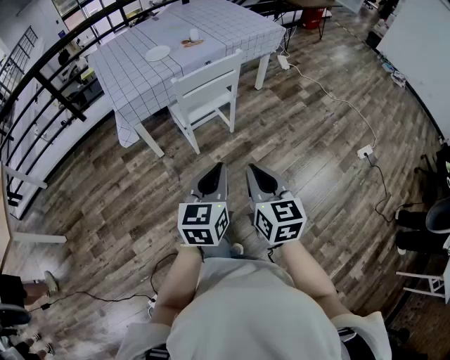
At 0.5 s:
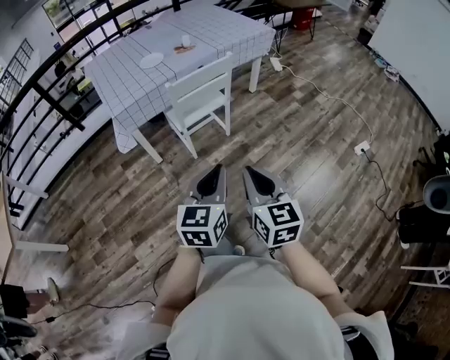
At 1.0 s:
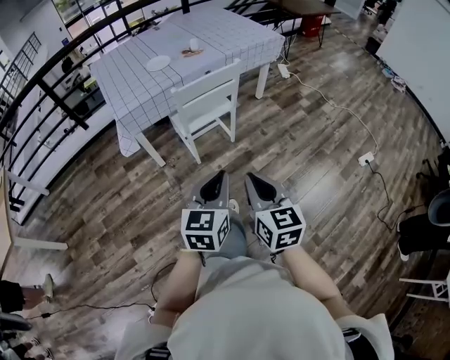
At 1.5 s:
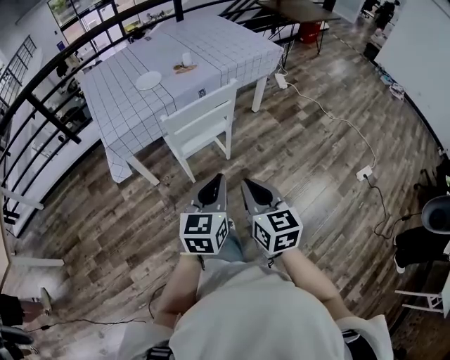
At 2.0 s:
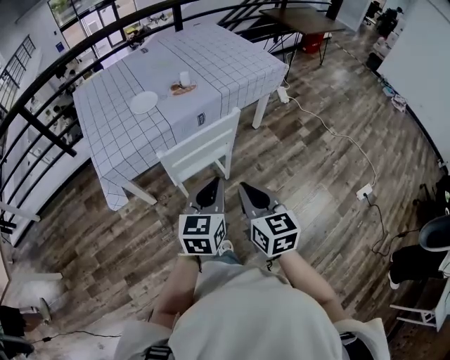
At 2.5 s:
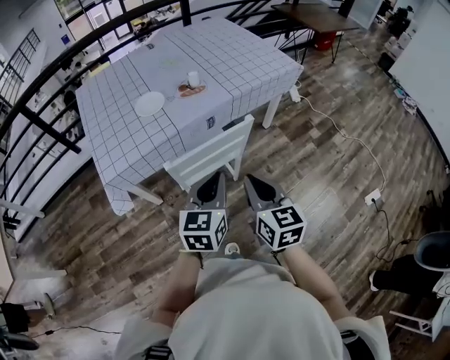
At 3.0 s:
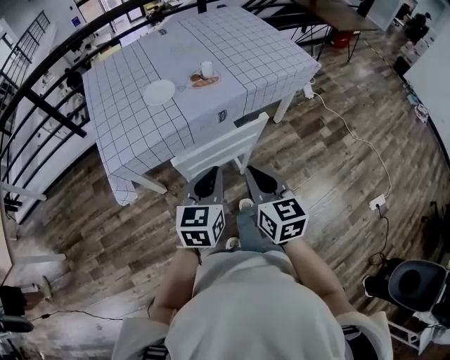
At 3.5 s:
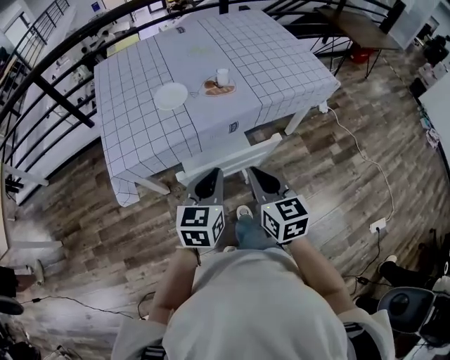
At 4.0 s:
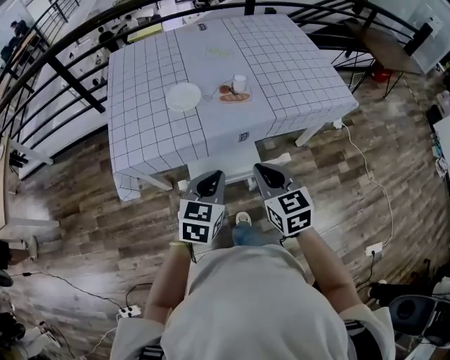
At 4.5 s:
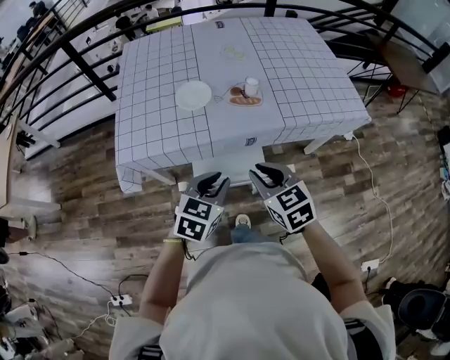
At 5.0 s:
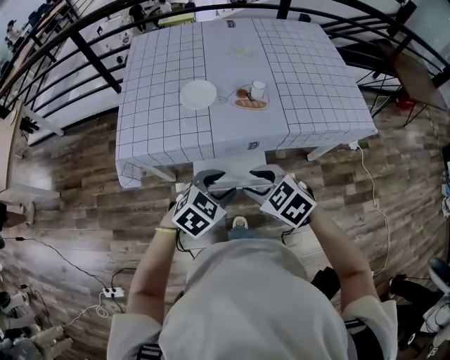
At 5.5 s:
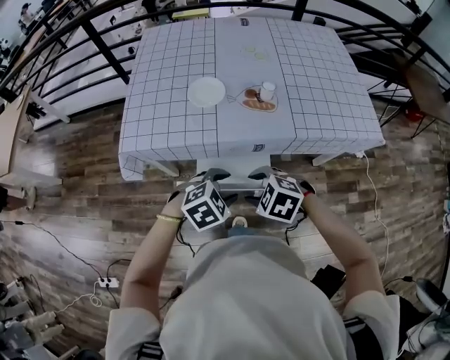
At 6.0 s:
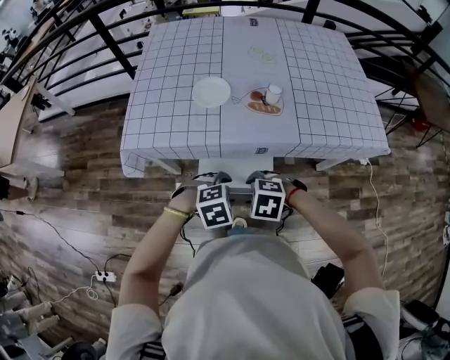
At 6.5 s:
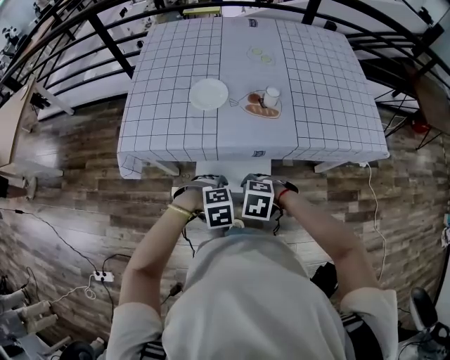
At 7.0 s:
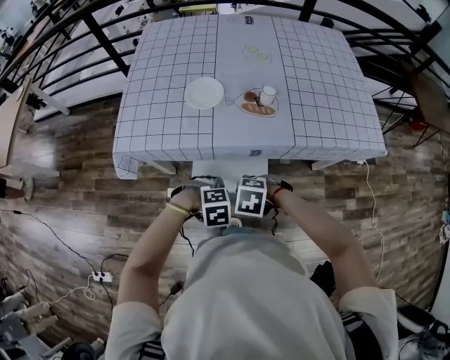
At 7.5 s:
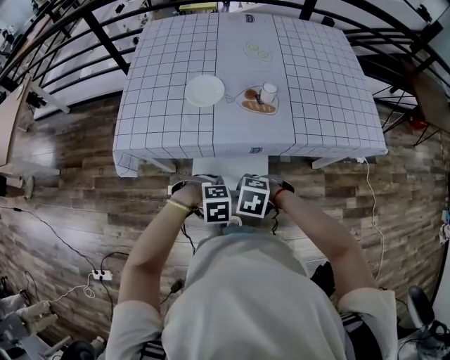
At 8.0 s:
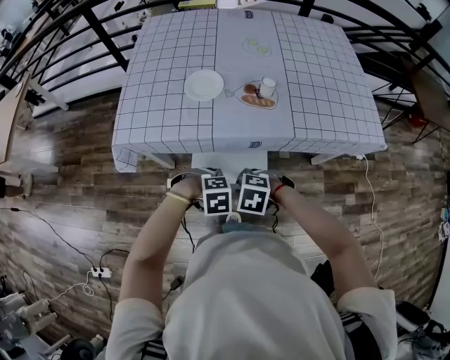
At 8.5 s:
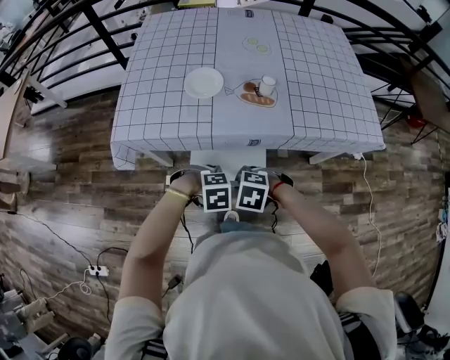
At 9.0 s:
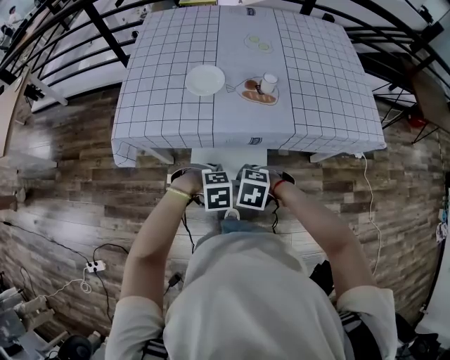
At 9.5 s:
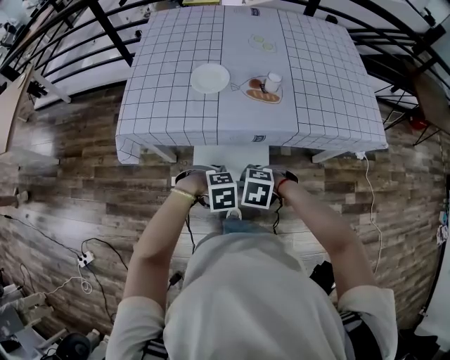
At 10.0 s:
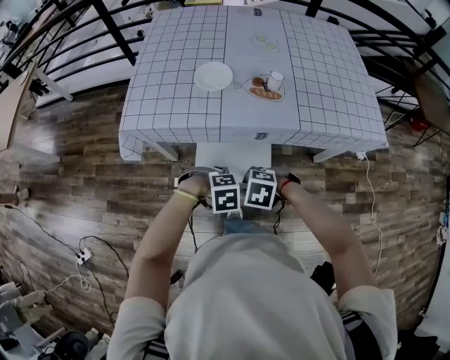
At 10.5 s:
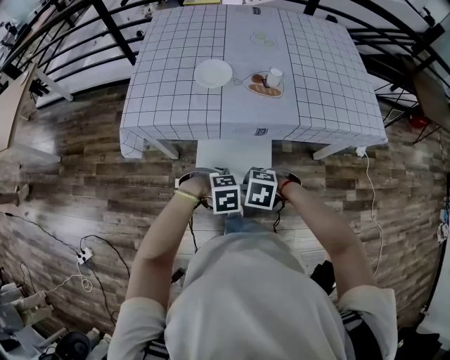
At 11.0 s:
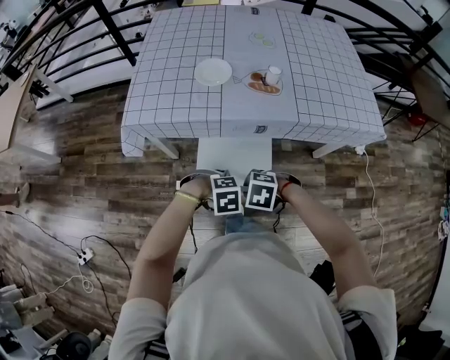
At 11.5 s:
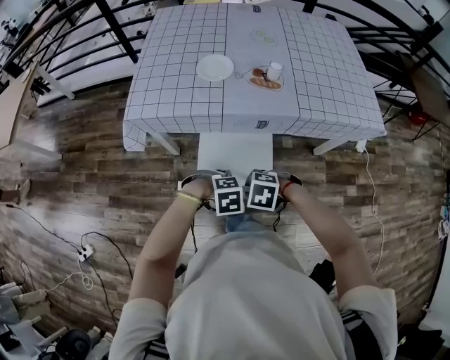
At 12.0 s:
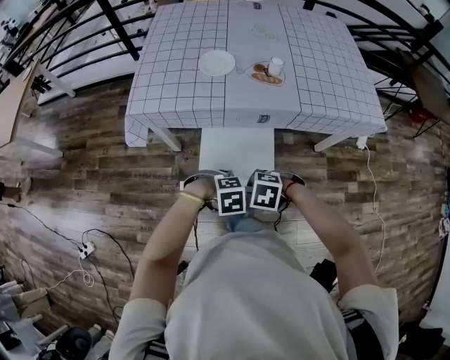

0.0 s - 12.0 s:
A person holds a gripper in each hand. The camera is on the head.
0.0 s - 2.0 s: Both grippers move forward, roughly 30 cm.
2.0 s - 4.0 s: The two grippers go roughly 25 cm forward. The right gripper changes its angle by some 30 degrees.
4.0 s - 6.0 s: Both grippers travel together downward, some 15 cm. The right gripper points its fingers roughly 50 degrees further downward, and opens up; the left gripper angles its fingers downward, by approximately 40 degrees, and opens up.
6.0 s - 8.0 s: The right gripper closes its fingers, while the left gripper shifts some 5 cm downward, and closes up.
8.0 s - 10.0 s: The grippers stay close to where they were, moving slightly.
10.0 s - 12.0 s: The right gripper shifts by some 10 cm. Meanwhile the left gripper shifts by roughly 10 cm.

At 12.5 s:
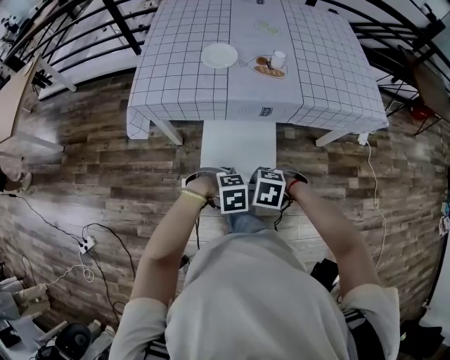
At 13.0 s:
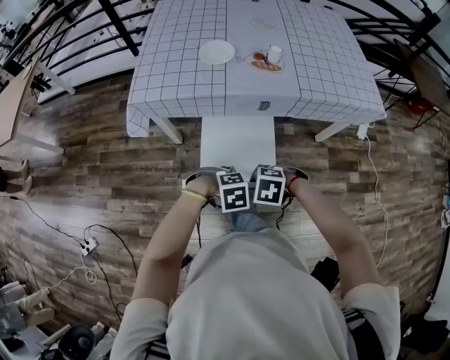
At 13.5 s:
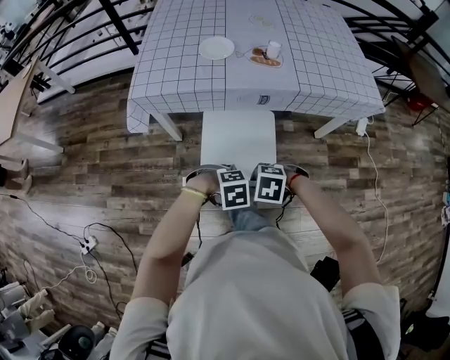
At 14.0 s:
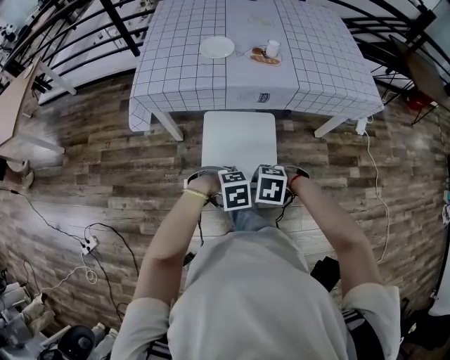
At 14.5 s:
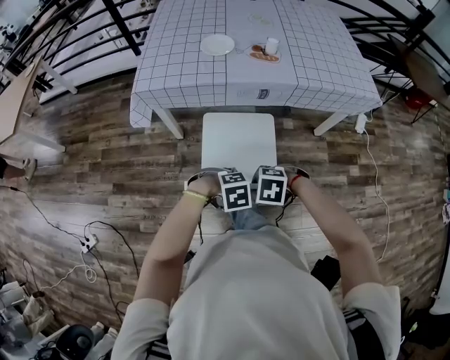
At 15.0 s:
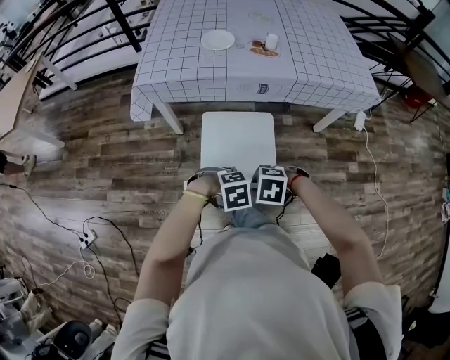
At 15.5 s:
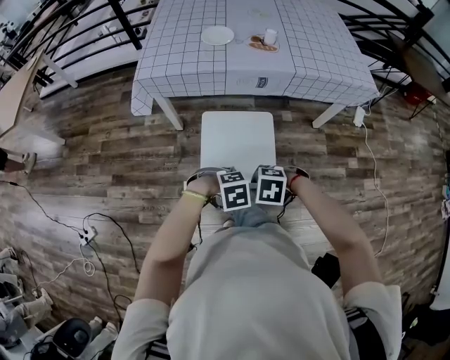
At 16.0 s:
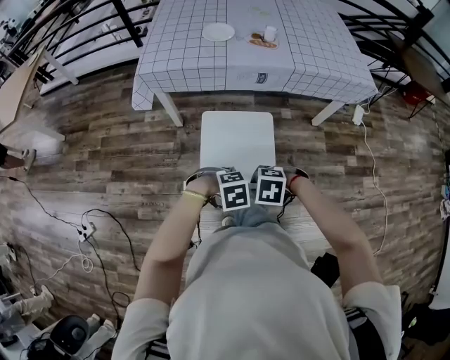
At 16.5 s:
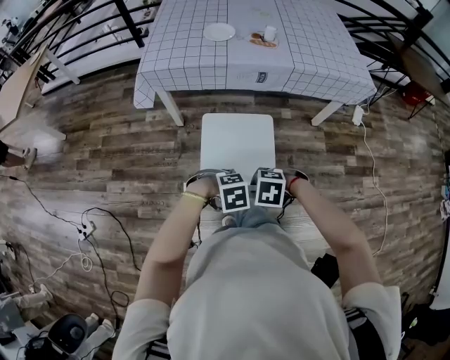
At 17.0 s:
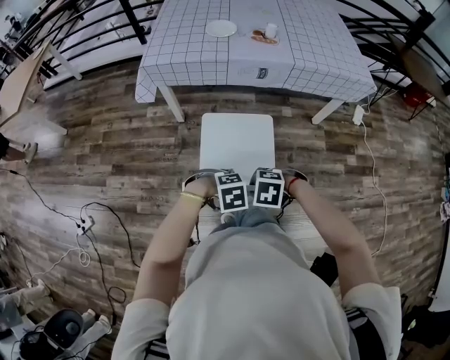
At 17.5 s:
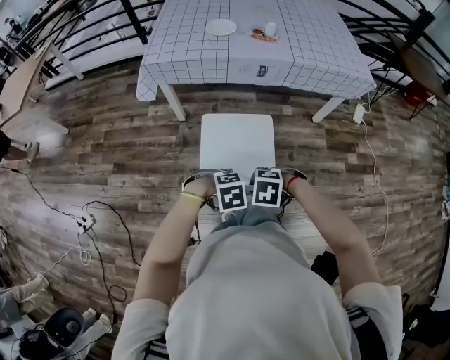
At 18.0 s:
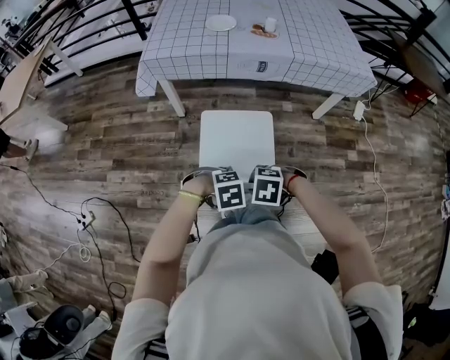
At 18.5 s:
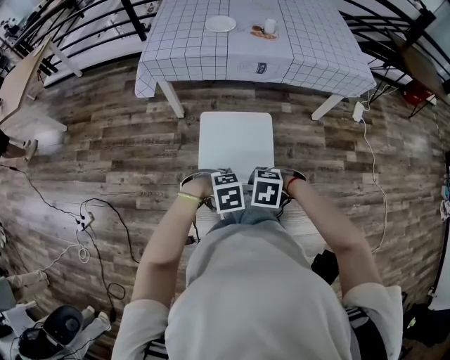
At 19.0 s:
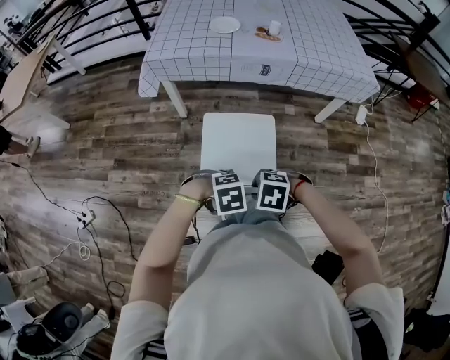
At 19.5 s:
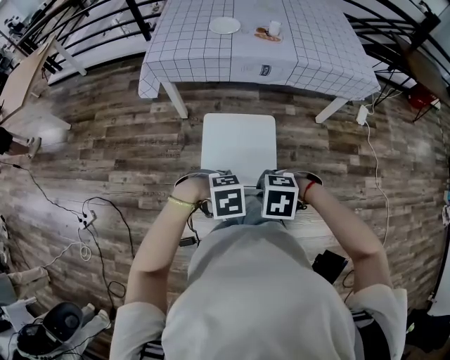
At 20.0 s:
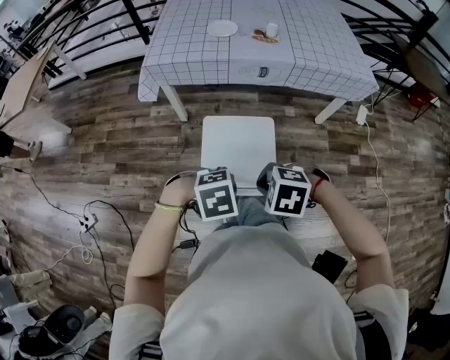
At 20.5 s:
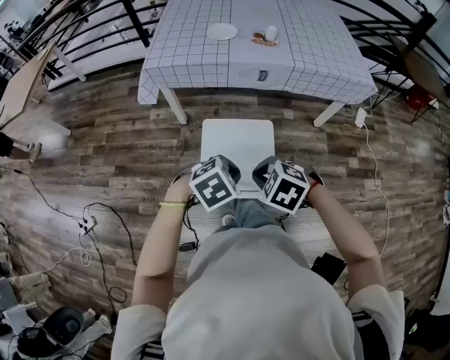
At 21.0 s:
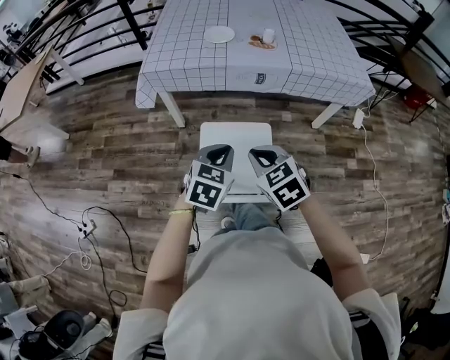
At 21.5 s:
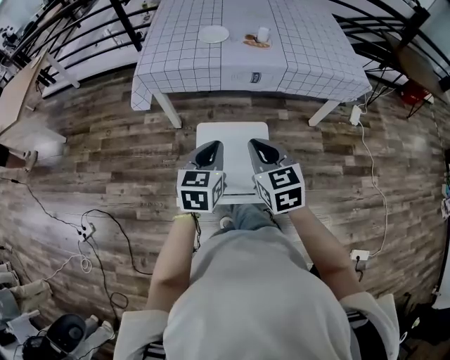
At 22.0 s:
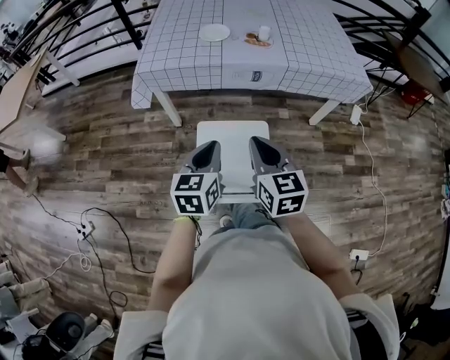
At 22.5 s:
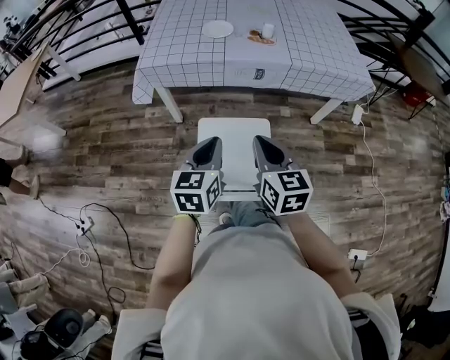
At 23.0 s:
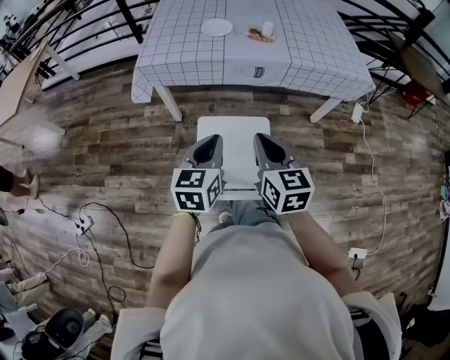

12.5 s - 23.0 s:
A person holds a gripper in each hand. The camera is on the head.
12.5 s - 14.5 s: The right gripper shifts by some 10 cm, while the left gripper ends up approximately 10 cm from where it was.
14.5 s - 16.5 s: The right gripper moves approximately 10 cm. Meanwhile the left gripper moves some 10 cm.
16.5 s - 19.0 s: The left gripper moves about 5 cm, while the right gripper changes place by approximately 5 cm.
19.0 s - 21.0 s: The left gripper ends up roughly 20 cm from where it was, tips its fingers upward by about 40 degrees, and closes its fingers, while the right gripper changes place by roughly 20 cm, points its fingers about 30 degrees further upward, and closes up.
21.0 s - 23.0 s: The right gripper moves approximately 5 cm, and rotates approximately 40 degrees, while the left gripper turns by some 20 degrees.

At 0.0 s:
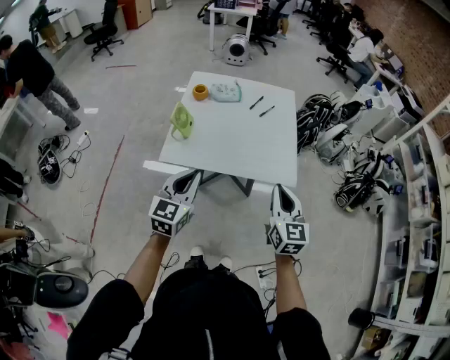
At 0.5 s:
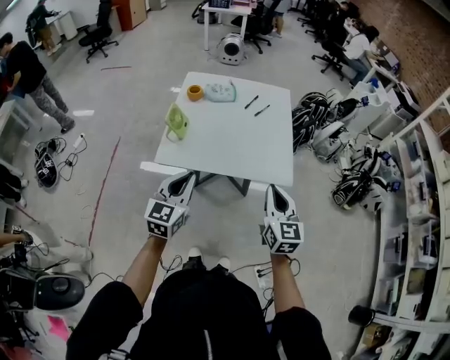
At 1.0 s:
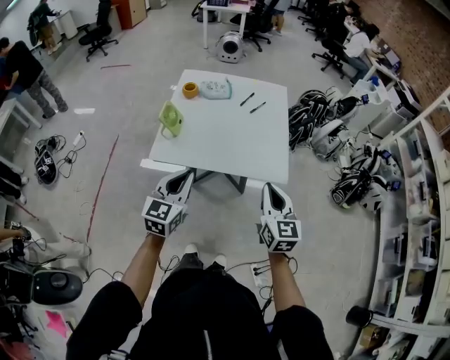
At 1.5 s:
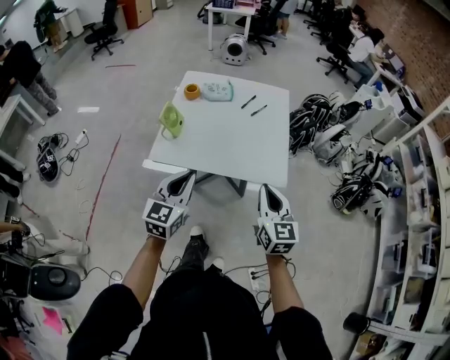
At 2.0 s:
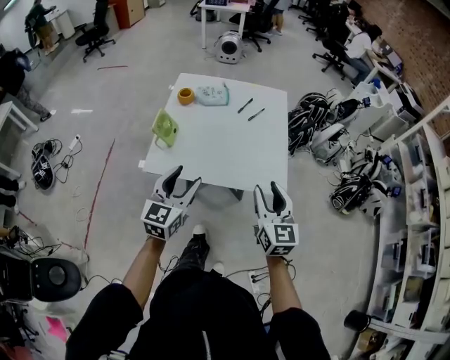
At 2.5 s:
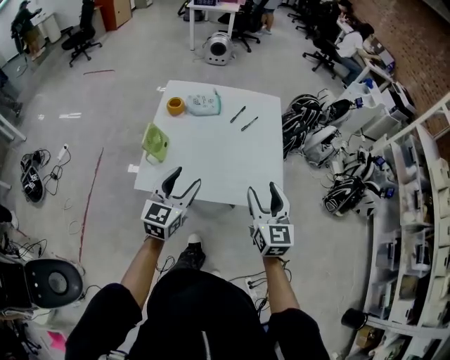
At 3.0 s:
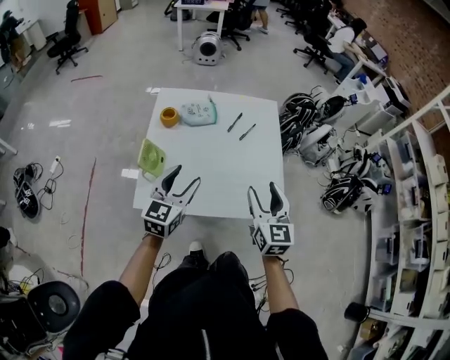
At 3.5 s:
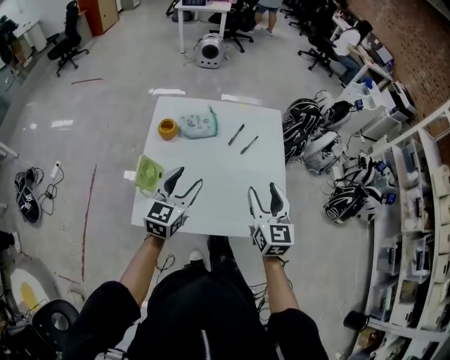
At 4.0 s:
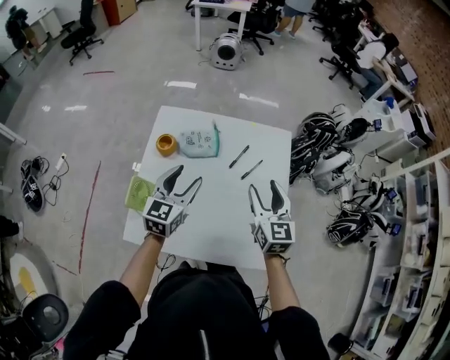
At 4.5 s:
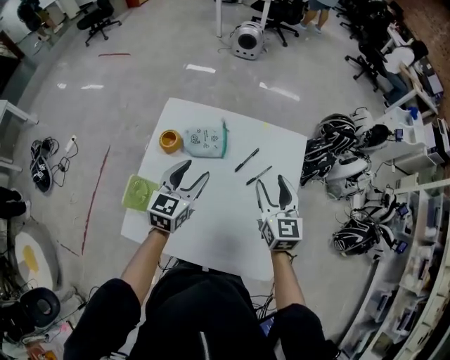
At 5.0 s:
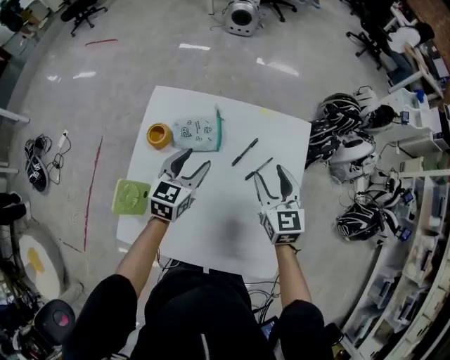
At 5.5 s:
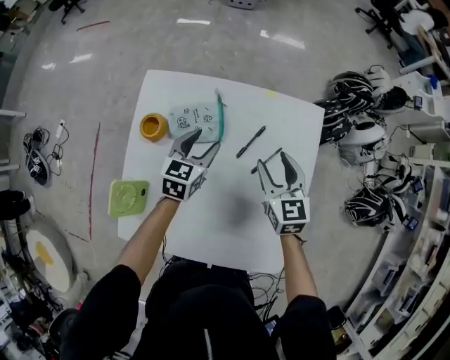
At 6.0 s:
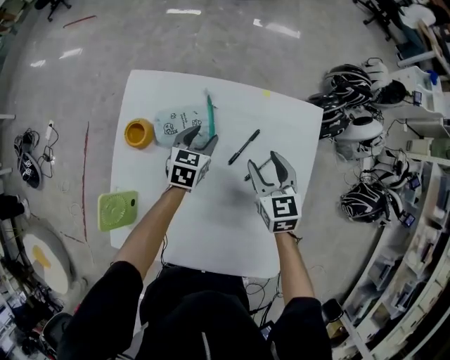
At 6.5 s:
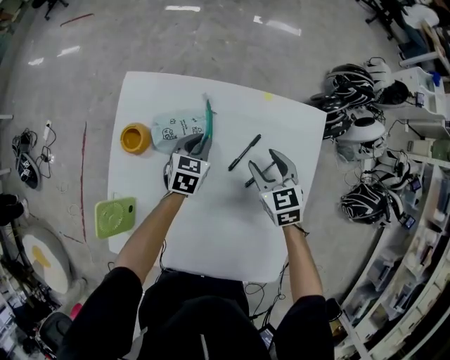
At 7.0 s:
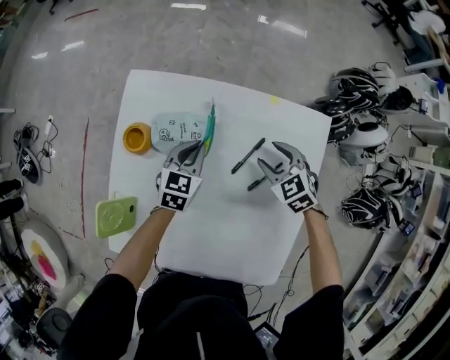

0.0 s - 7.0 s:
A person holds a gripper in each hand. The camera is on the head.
0.0 s - 2.0 s: Both grippers travel together forward, roughly 5 cm. The left gripper opens up; the right gripper opens up.
2.0 s - 3.5 s: Both grippers travel together forward, approximately 20 cm.
3.5 s - 5.0 s: The two grippers go about 25 cm forward.
5.0 s - 7.0 s: Both grippers move downward and forward, about 20 cm. The right gripper rotates approximately 40 degrees; the left gripper closes up.
